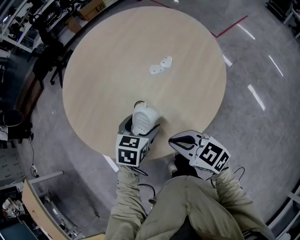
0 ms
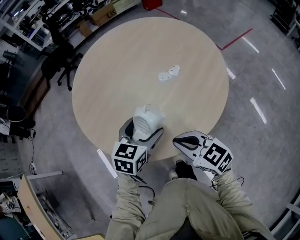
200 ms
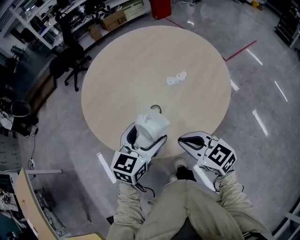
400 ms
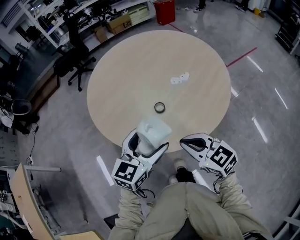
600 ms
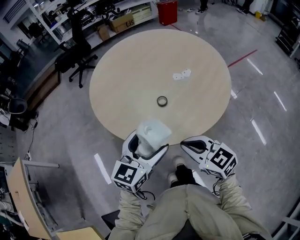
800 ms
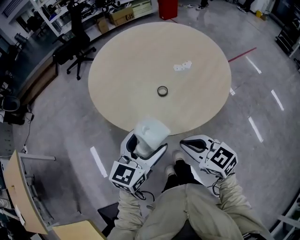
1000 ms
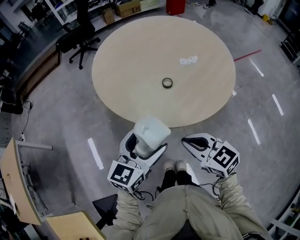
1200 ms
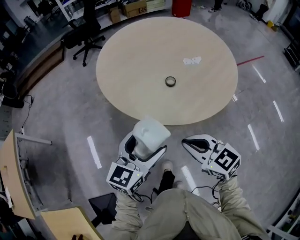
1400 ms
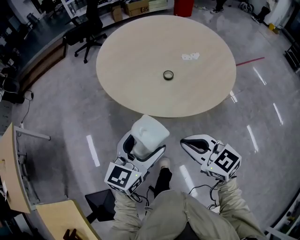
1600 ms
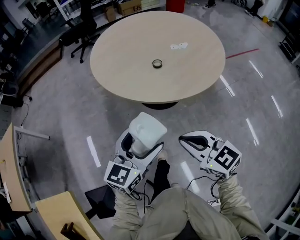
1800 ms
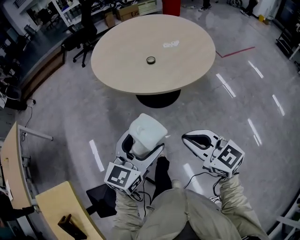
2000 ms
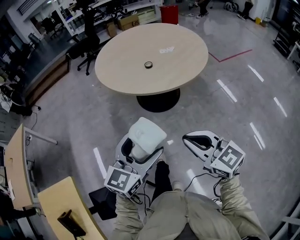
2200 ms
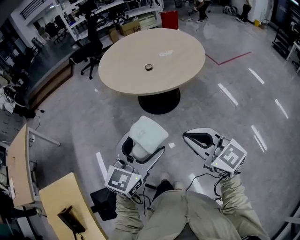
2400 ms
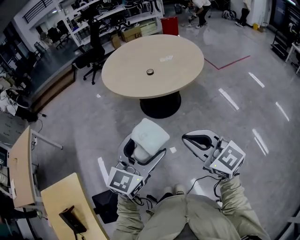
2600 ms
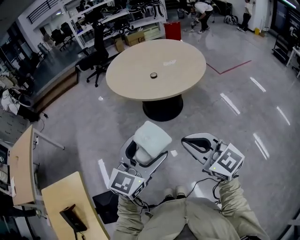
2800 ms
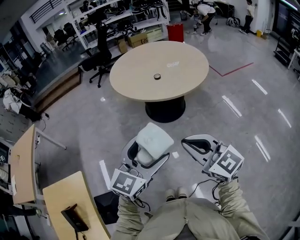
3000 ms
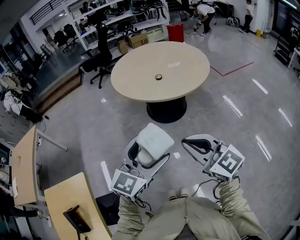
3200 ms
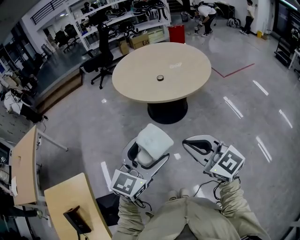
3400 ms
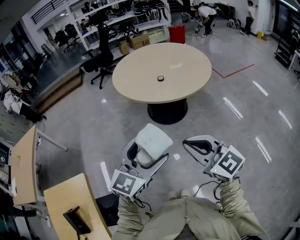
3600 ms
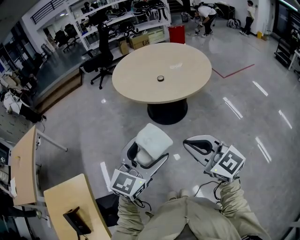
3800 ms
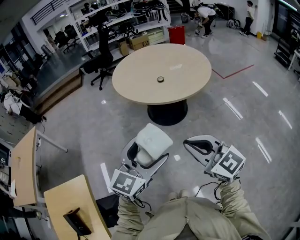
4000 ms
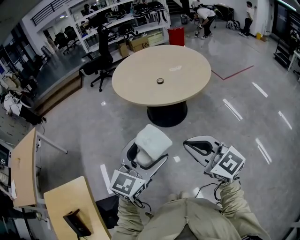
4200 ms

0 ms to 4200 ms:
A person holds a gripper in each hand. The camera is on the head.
0 ms to 1400 ms: The left gripper shifts approximately 30 cm backward, to the left and upward, and points its fingers about 30 degrees further upward. Meanwhile the right gripper travels backward, to the left and upward by roughly 20 cm.
1400 ms to 2800 ms: The left gripper moves backward, roughly 40 cm. The right gripper goes some 40 cm backward and upward, and swivels approximately 20 degrees.
2800 ms to 4200 ms: The grippers make only small movements.

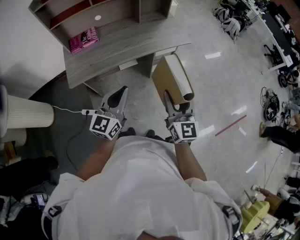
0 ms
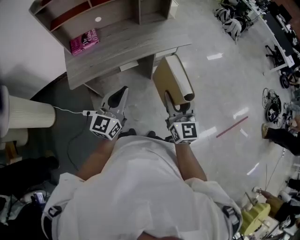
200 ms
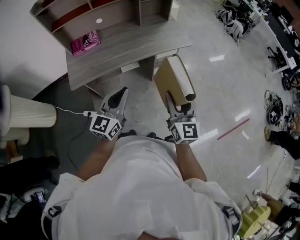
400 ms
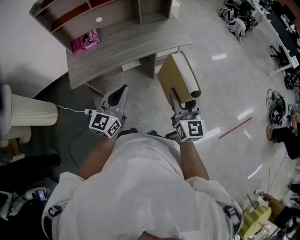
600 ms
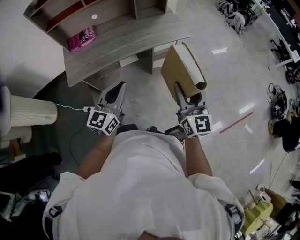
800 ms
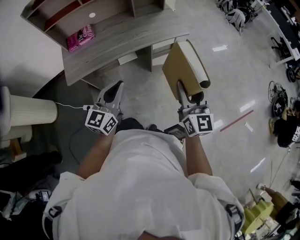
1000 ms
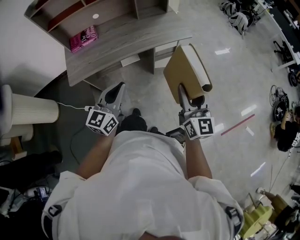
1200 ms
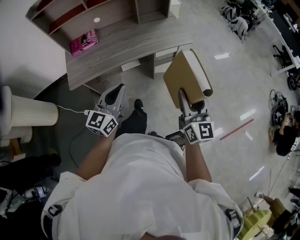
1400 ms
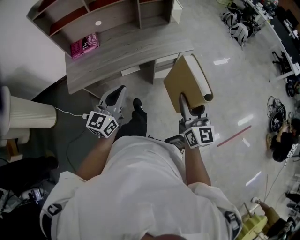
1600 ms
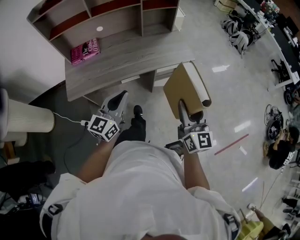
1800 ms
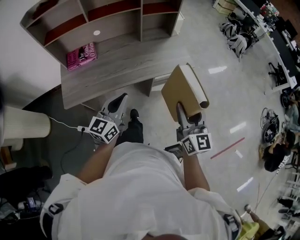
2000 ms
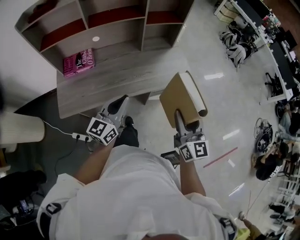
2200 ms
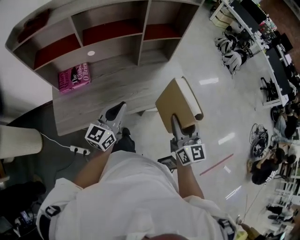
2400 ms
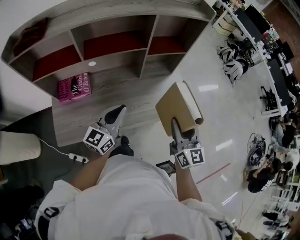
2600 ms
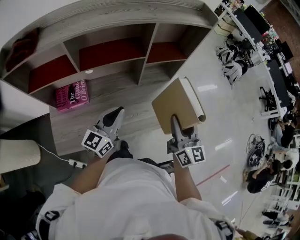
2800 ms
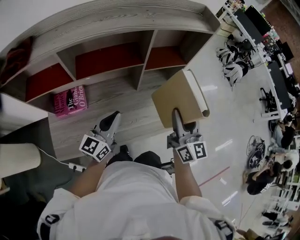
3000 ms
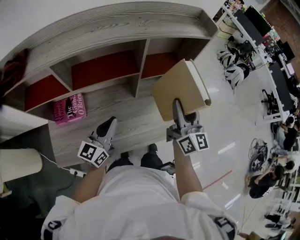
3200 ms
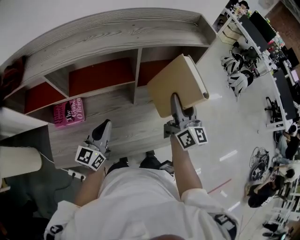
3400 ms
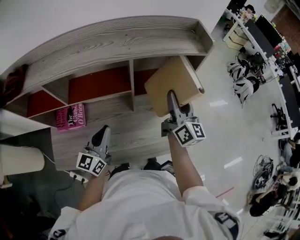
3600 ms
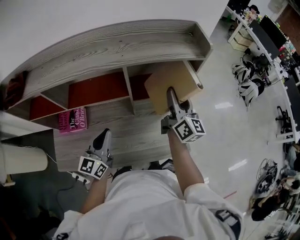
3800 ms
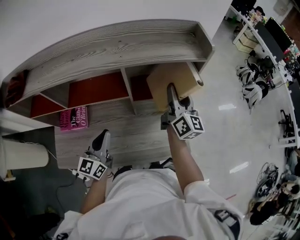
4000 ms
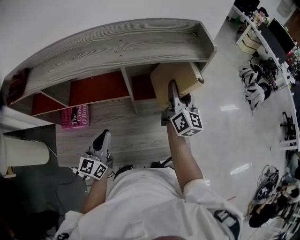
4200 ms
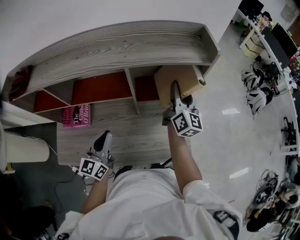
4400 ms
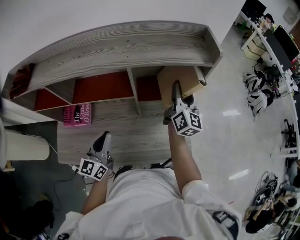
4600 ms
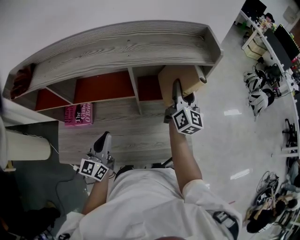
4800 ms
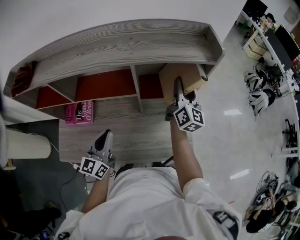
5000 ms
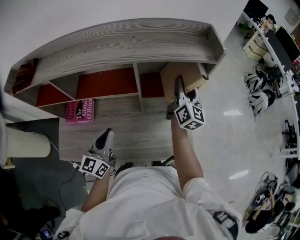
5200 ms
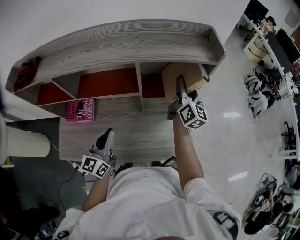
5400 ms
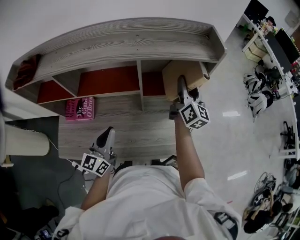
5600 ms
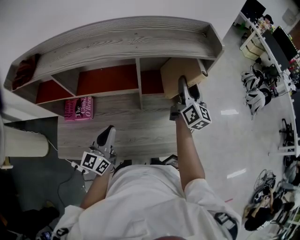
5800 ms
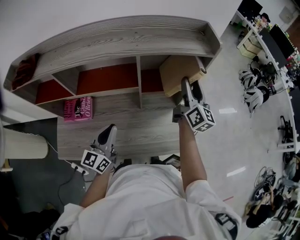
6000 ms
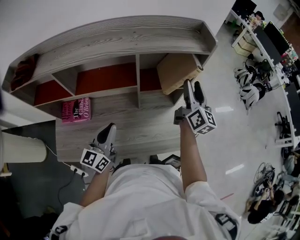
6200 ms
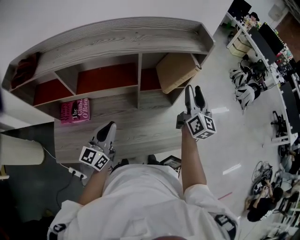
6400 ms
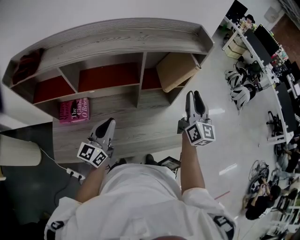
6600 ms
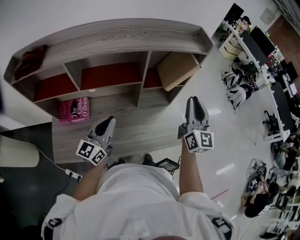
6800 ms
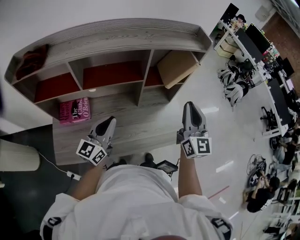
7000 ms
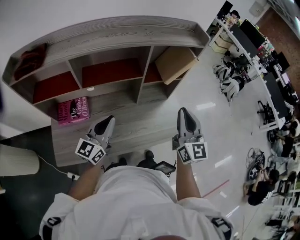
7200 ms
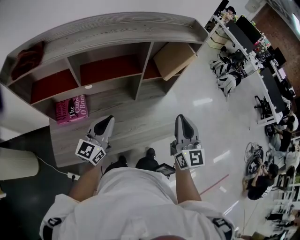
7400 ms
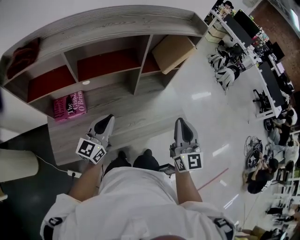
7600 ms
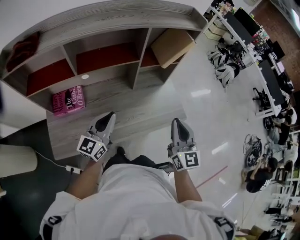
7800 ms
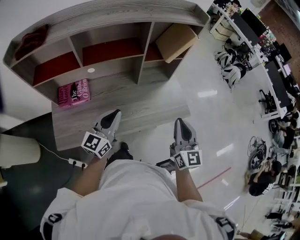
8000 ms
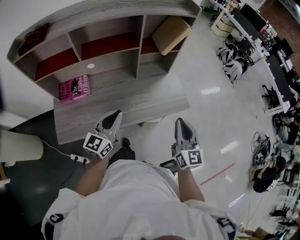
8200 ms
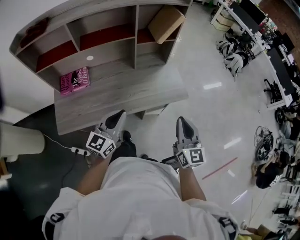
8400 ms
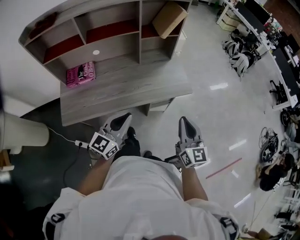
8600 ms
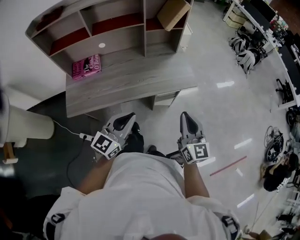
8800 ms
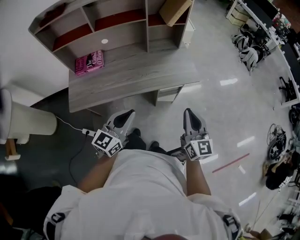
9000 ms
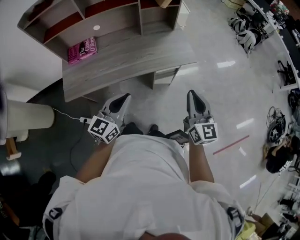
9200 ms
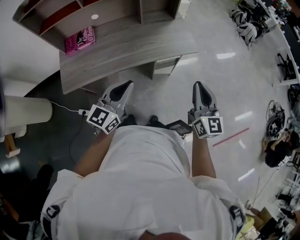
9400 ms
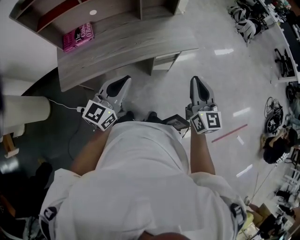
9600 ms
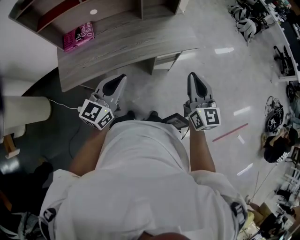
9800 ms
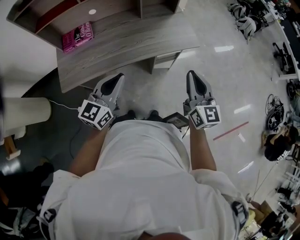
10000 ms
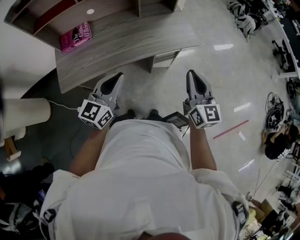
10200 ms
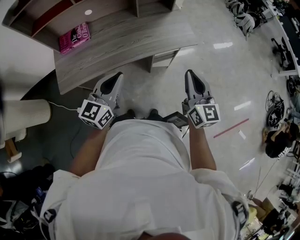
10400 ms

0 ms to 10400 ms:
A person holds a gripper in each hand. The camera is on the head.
0 ms to 1400 ms: The right gripper shifts approximately 10 cm to the right, while the left gripper changes place by about 5 cm.
1400 ms to 3000 ms: Both grippers are carried forward, roughly 50 cm.
3000 ms to 4400 ms: The right gripper travels forward by about 25 cm, while the left gripper ends up approximately 5 cm from where it was, and turns by roughly 20 degrees.
4400 ms to 6000 ms: There are only small adjustments of the grippers.
6000 ms to 7400 ms: The right gripper travels backward by approximately 30 cm, changes its angle by about 30 degrees, and closes up. Meanwhile the left gripper moves to the left and backward, roughly 10 cm.
7400 ms to 9000 ms: The right gripper travels backward, downward and to the right by roughly 30 cm. The left gripper travels backward and to the right by some 30 cm.
9000 ms to 10400 ms: There are only small adjustments of the grippers.

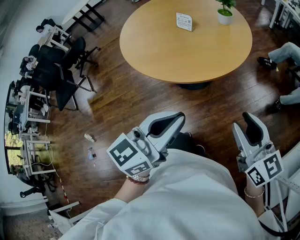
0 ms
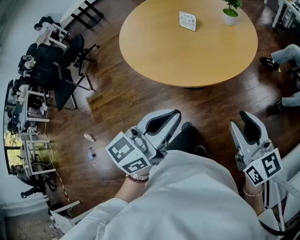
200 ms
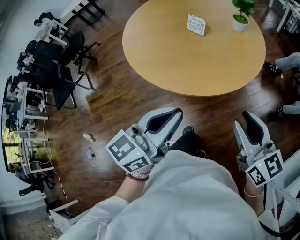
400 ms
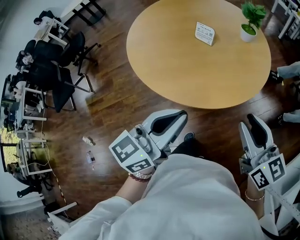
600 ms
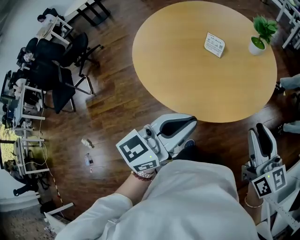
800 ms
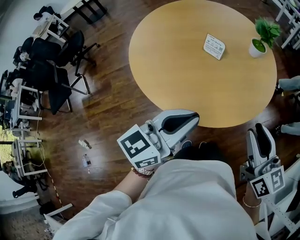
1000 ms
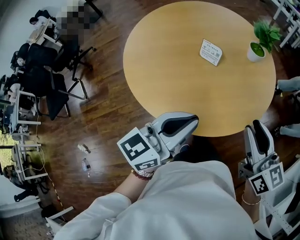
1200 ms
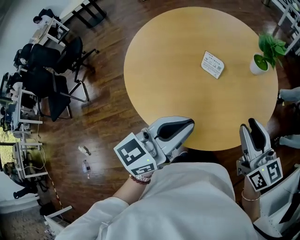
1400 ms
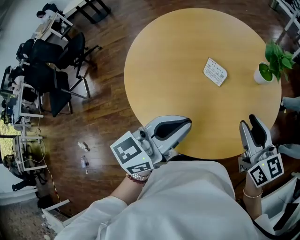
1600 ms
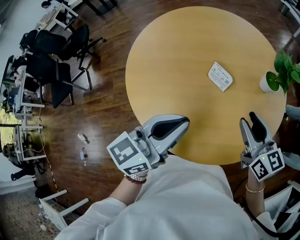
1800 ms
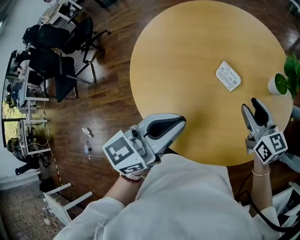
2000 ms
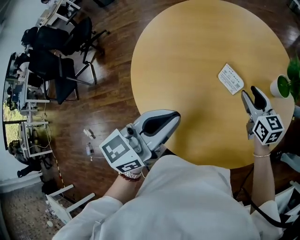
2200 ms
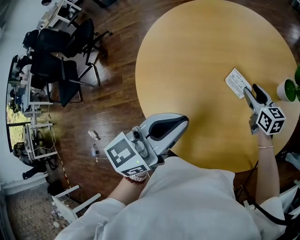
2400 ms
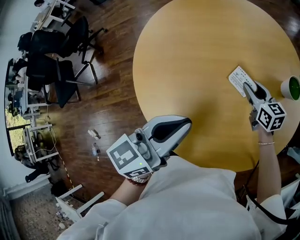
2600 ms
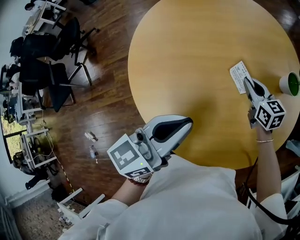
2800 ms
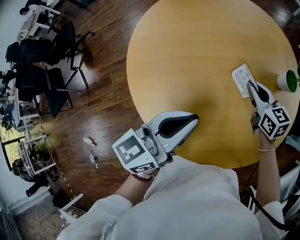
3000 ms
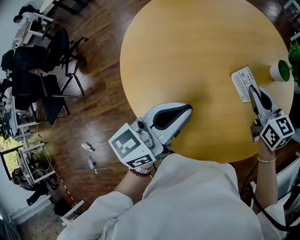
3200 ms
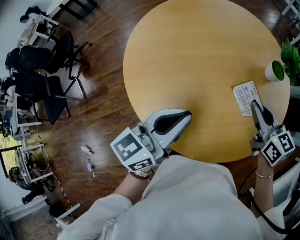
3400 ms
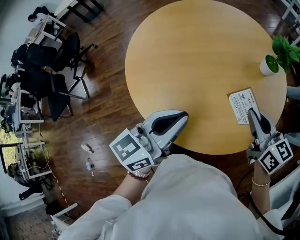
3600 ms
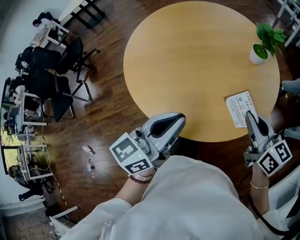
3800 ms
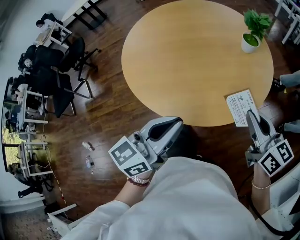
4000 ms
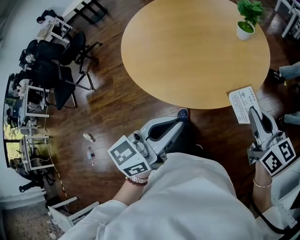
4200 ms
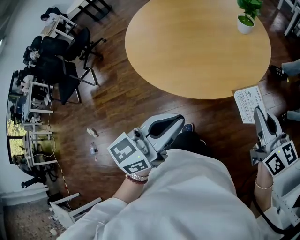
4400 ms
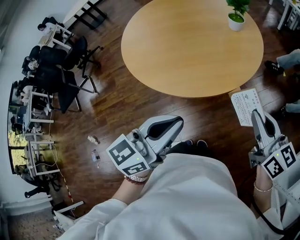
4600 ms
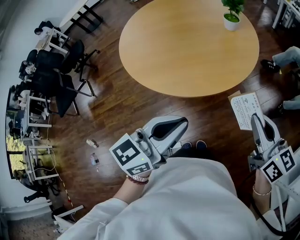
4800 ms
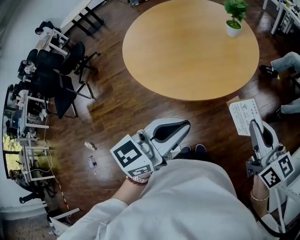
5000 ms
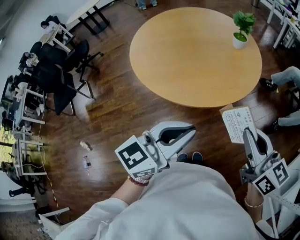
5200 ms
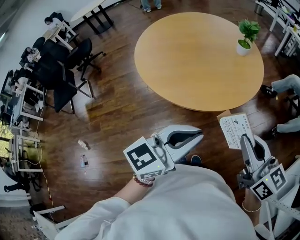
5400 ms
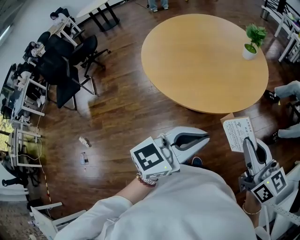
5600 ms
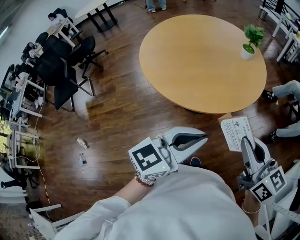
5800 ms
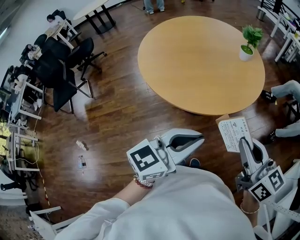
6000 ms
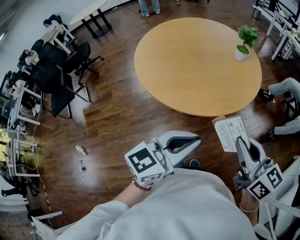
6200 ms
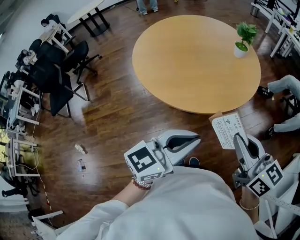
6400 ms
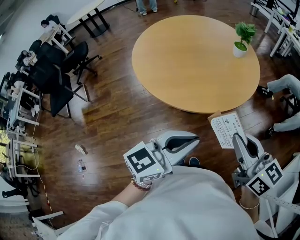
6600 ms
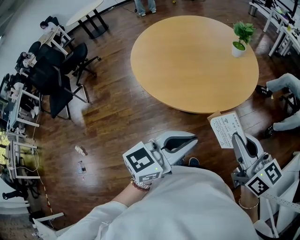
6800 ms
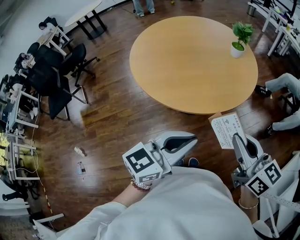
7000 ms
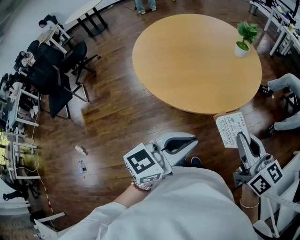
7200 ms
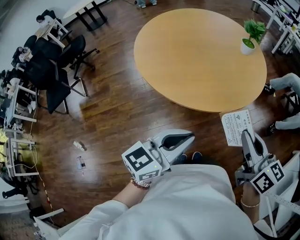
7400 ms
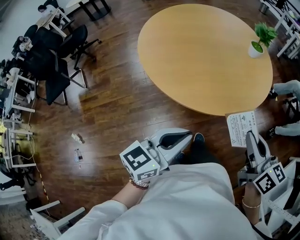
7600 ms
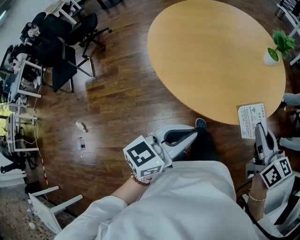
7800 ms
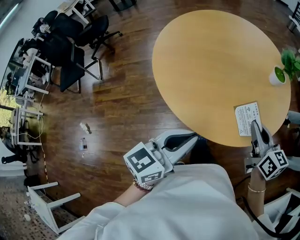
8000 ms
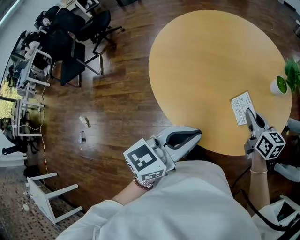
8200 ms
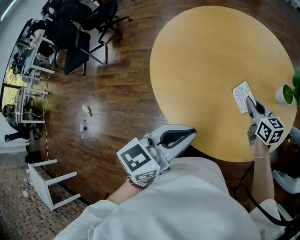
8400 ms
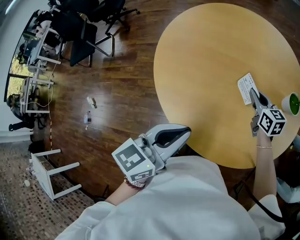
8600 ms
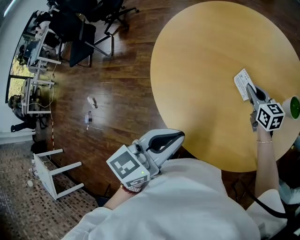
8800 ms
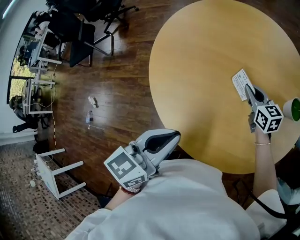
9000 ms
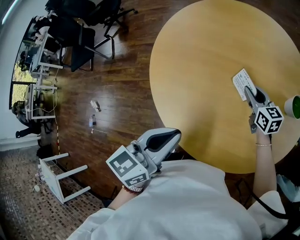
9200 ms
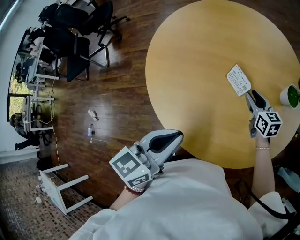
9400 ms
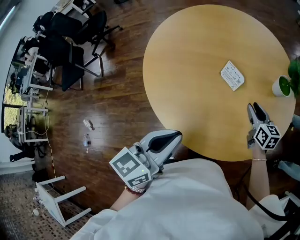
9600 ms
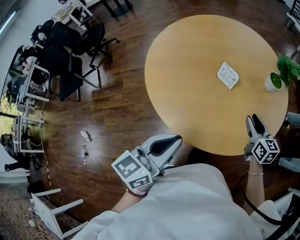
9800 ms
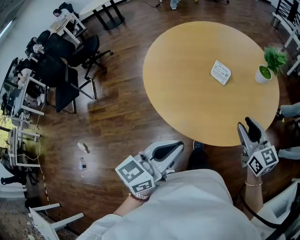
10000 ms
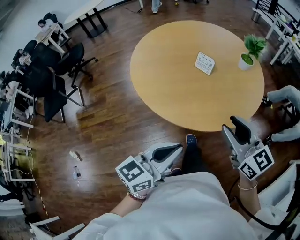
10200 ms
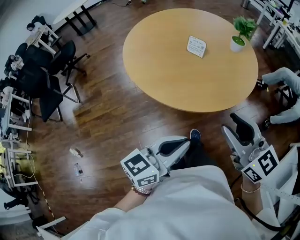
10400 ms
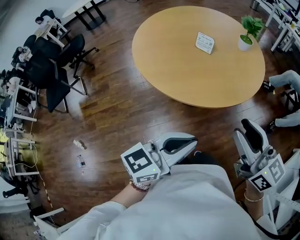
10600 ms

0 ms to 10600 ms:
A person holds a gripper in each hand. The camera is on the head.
0 ms to 1600 ms: The right gripper heads forward, covering approximately 40 cm, while the left gripper shifts roughly 40 cm forward and to the left.
1600 ms to 3000 ms: The left gripper travels forward, to the left and downward by approximately 15 cm. The right gripper moves forward, downward and to the left, roughly 30 cm, and closes up.
3000 ms to 4600 ms: The pair of grippers is taken backward and to the right, about 50 cm. The right gripper turns by some 20 degrees.
4600 ms to 6000 ms: The right gripper goes some 15 cm to the left, backward and upward; the left gripper is displaced backward by roughly 5 cm.
6000 ms to 7600 ms: The left gripper shifts approximately 10 cm to the left, while the right gripper is displaced forward by roughly 10 cm.
7600 ms to 9000 ms: The right gripper moves about 60 cm, and swivels roughly 30 degrees. The left gripper goes up and down, about 5 cm each way, reversing 2 times, and swivels approximately 30 degrees.
9000 ms to 10600 ms: The right gripper changes place by approximately 60 cm, turns by approximately 30 degrees, and opens its fingers; the left gripper ends up about 35 cm from where it was, and swivels about 40 degrees.
